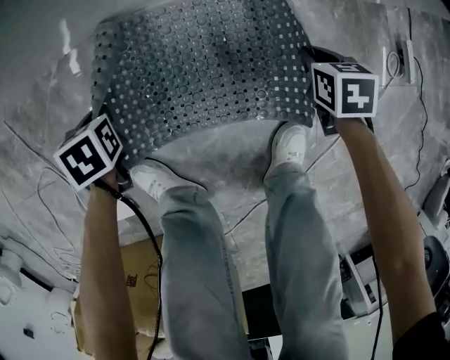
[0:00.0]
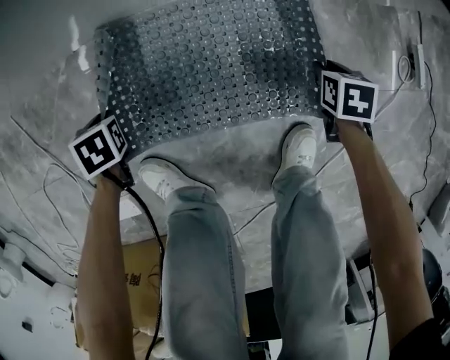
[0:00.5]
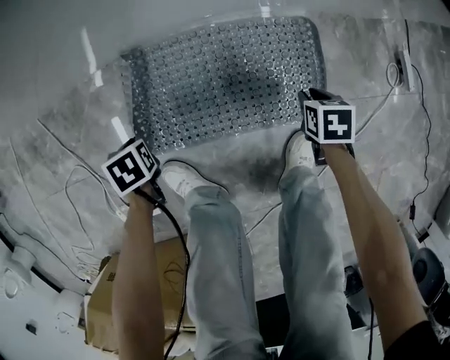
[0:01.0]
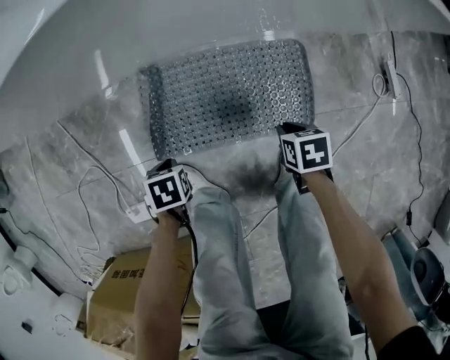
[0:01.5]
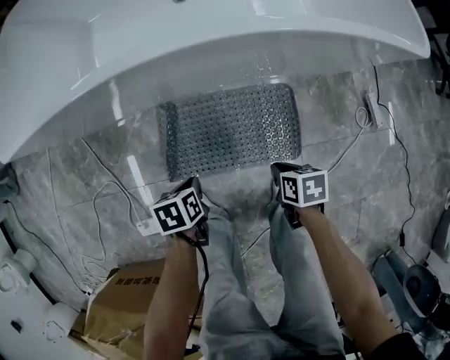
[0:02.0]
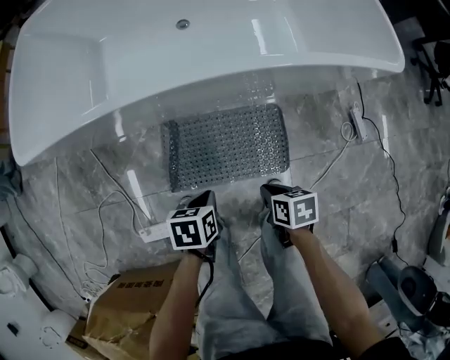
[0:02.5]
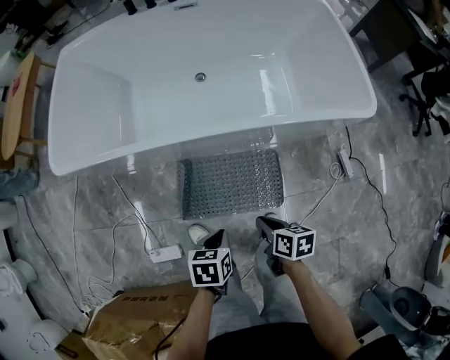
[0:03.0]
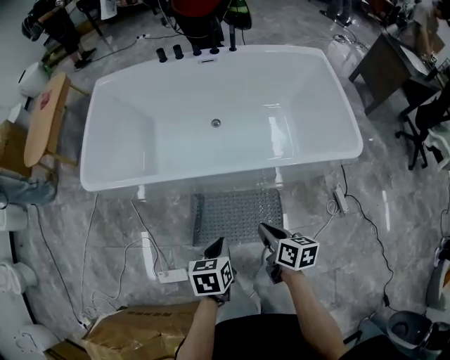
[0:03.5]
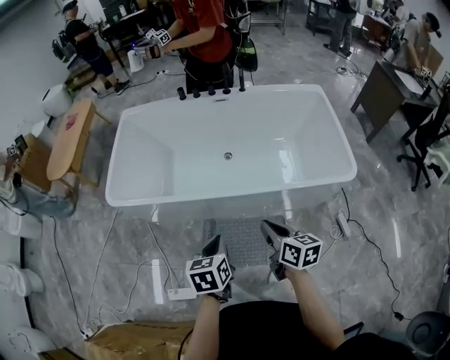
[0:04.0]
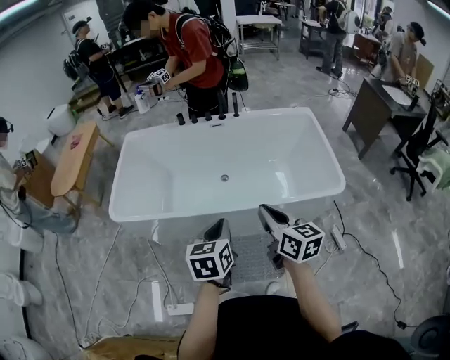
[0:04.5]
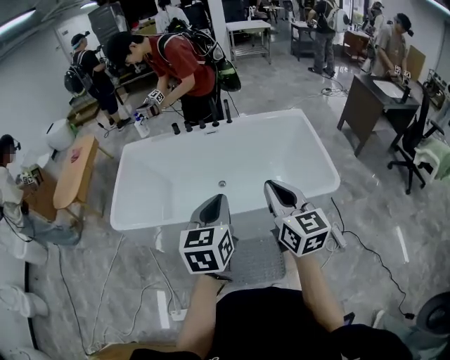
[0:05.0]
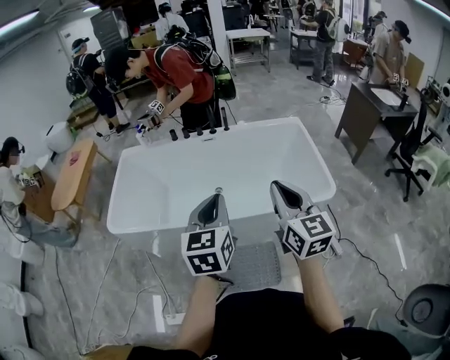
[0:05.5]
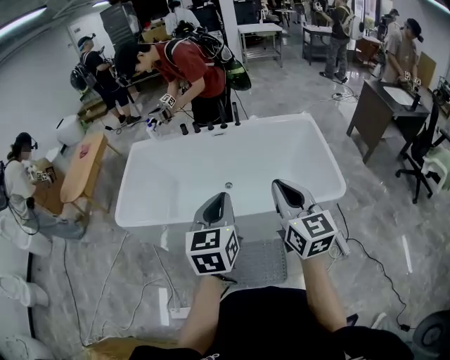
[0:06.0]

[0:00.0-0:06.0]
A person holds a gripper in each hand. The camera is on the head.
0:00.0 to 0:02.0: The two grippers go approximately 20 cm upward. The left gripper changes its angle by some 20 degrees; the right gripper rotates approximately 30 degrees, and opens, then closes once more.
0:02.0 to 0:04.0: Both grippers travel together upward, approximately 50 cm. The right gripper tips its fingers upward by some 40 degrees, while the left gripper turns by about 40 degrees.
0:04.0 to 0:06.0: The right gripper shifts some 25 cm upward, and swivels approximately 40 degrees; the left gripper moves upward and to the right, some 25 cm, and turns by roughly 30 degrees.

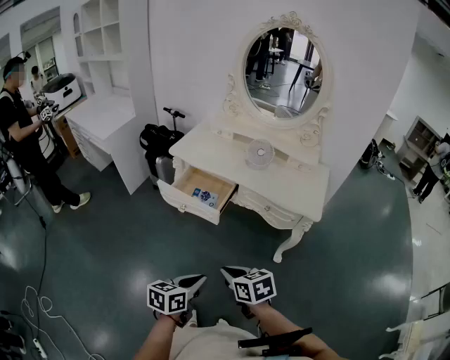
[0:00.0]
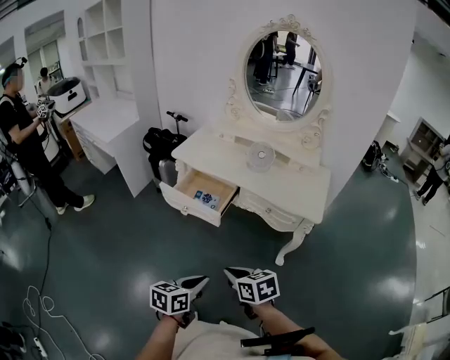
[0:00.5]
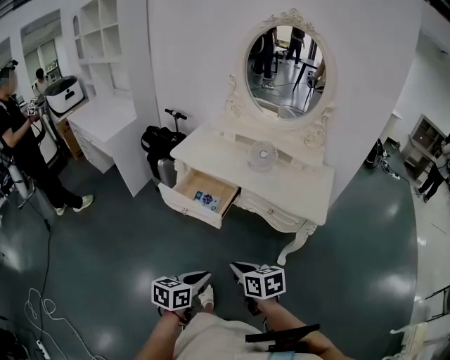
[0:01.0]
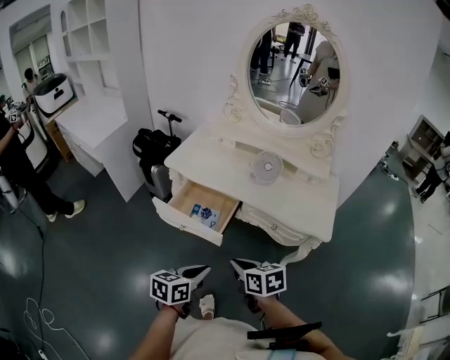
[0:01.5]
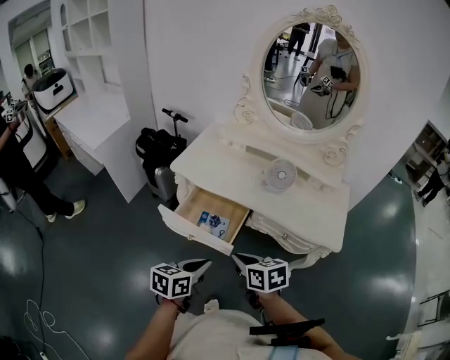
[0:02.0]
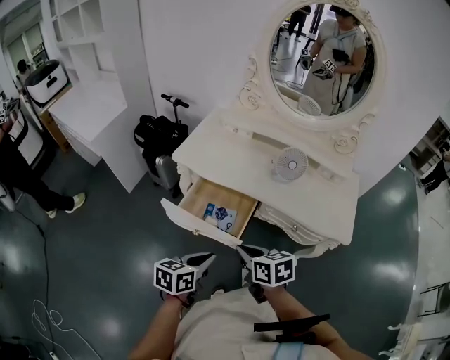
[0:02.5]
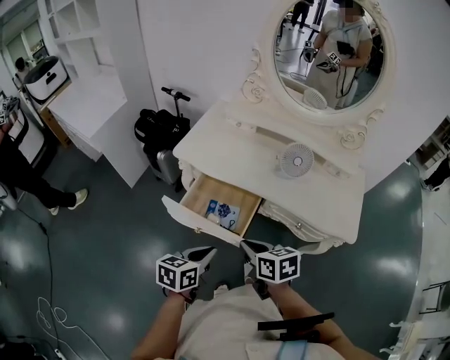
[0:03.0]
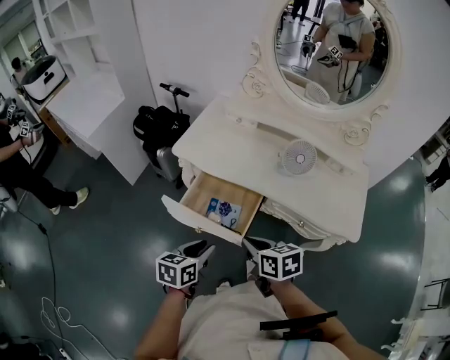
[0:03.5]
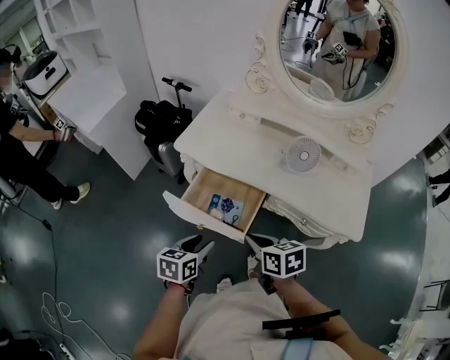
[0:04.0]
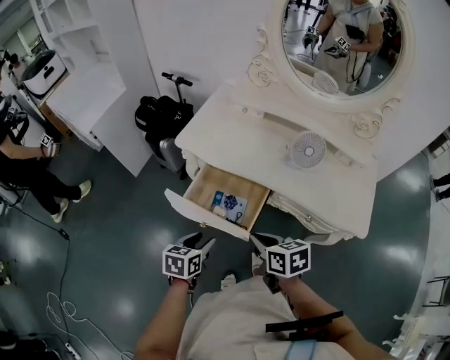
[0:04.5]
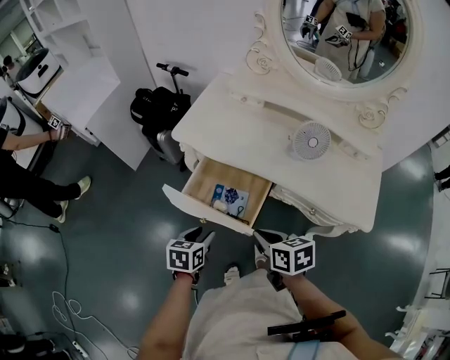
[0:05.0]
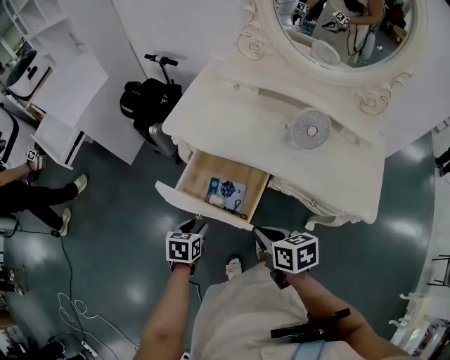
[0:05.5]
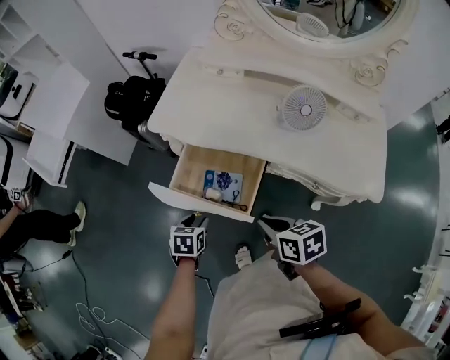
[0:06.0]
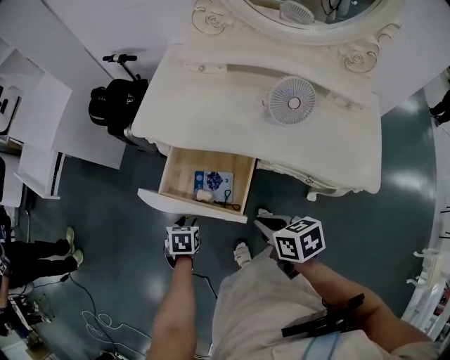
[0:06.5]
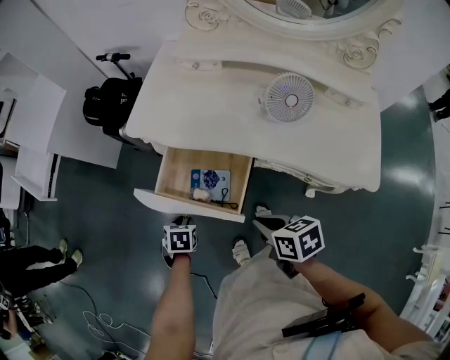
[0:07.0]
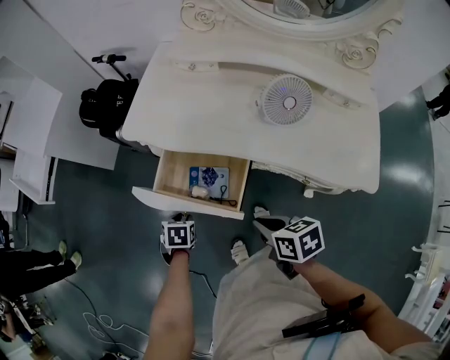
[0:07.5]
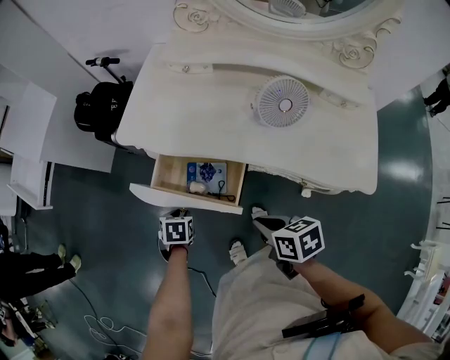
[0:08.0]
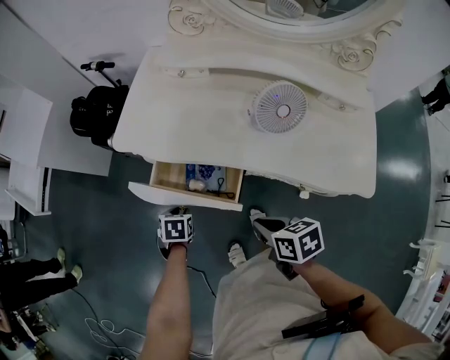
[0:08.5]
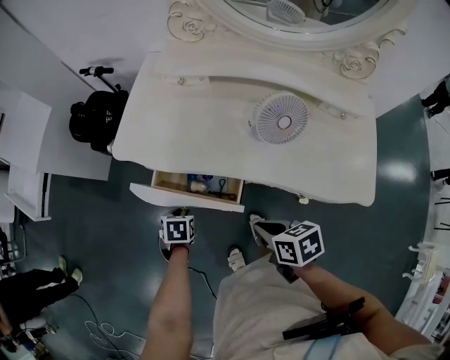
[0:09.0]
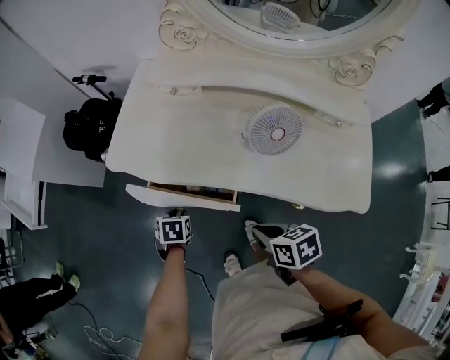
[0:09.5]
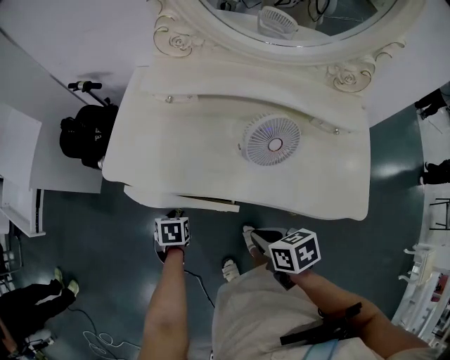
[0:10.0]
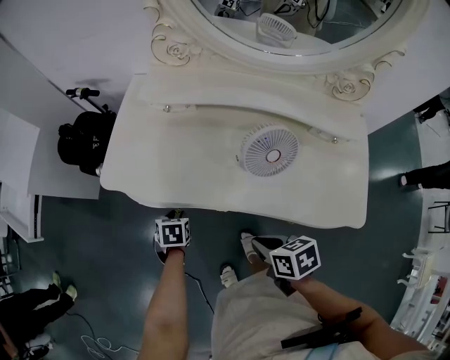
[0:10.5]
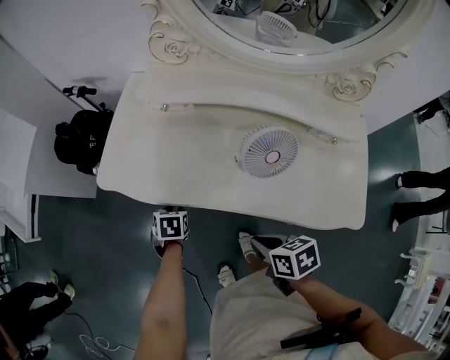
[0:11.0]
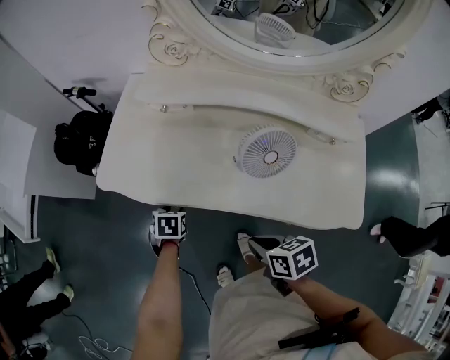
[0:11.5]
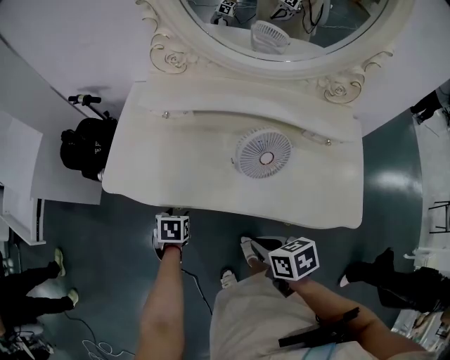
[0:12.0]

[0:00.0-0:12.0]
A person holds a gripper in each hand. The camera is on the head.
0:00.0 to 0:02.0: The grippers both shift forward by approximately 25 cm.
0:02.0 to 0:04.0: The left gripper goes about 15 cm forward, downward and to the left, and opens up; the right gripper shifts roughly 10 cm forward.
0:04.0 to 0:06.0: The right gripper shifts some 5 cm downward, while the left gripper moves downward and forward, some 15 cm, and rotates roughly 20 degrees.
0:06.0 to 0:08.0: The right gripper changes place by approximately 5 cm, while the left gripper goes about 5 cm forward.
0:08.0 to 0:10.0: The left gripper travels forward and to the right by approximately 10 cm, while the right gripper shifts approximately 10 cm forward and to the right.
0:10.0 to 0:12.0: The left gripper ends up about 5 cm from where it was, and opens.

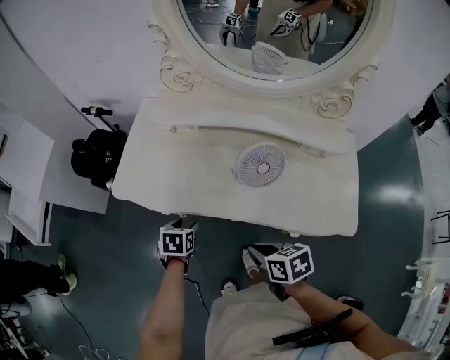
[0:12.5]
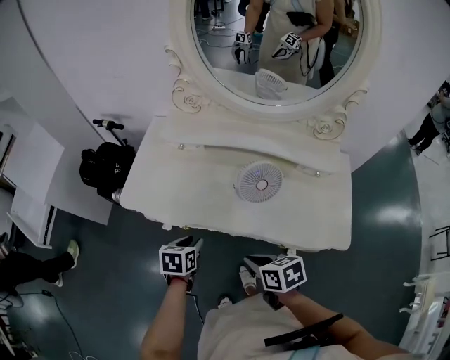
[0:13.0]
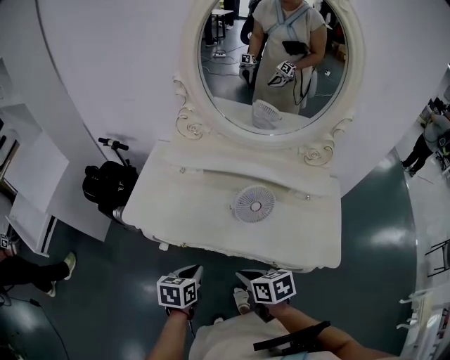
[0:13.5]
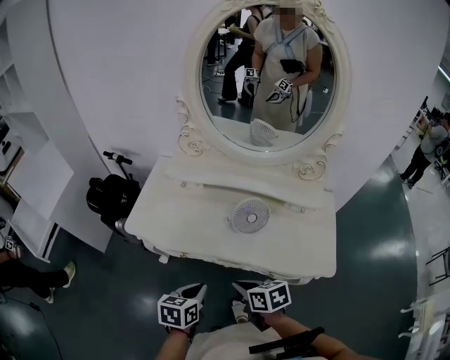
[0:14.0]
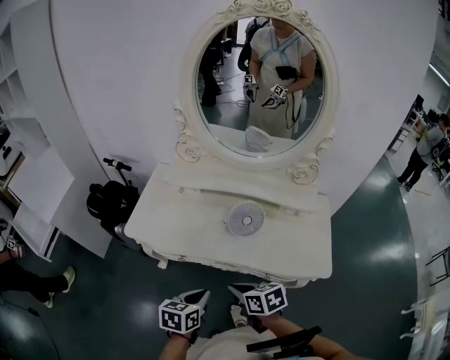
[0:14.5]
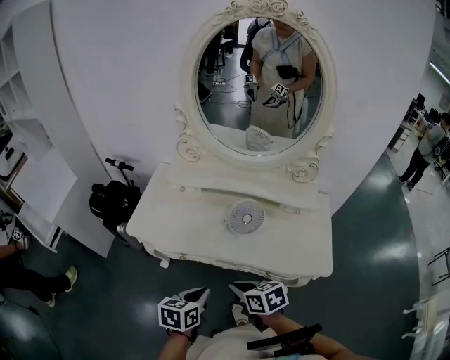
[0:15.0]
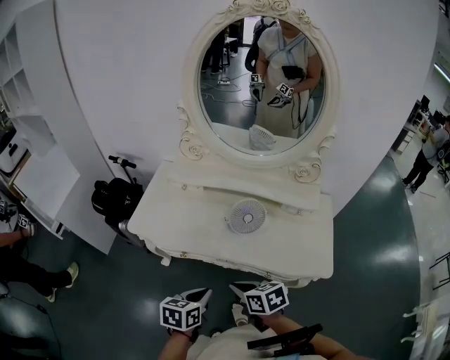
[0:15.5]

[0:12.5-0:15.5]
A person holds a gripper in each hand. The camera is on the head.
0:12.5 to 0:14.0: The left gripper shifts roughly 20 cm upward and backward, swivels about 20 degrees, and closes, while the right gripper shifts roughly 5 cm upward.
0:14.0 to 0:15.5: The grippers move only a little.

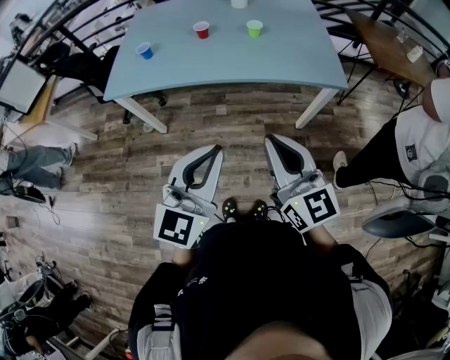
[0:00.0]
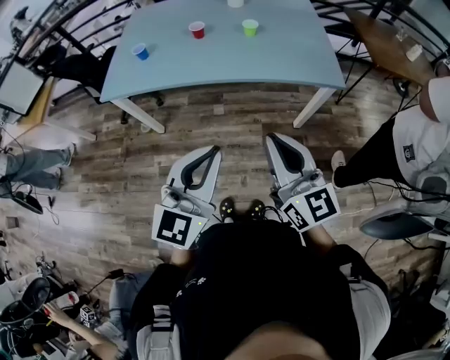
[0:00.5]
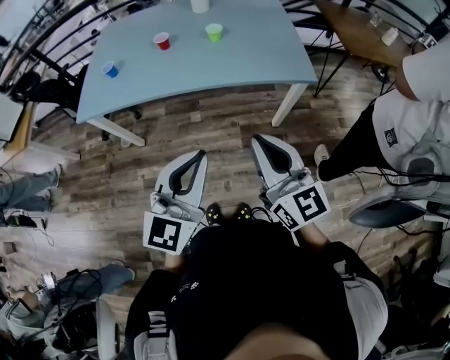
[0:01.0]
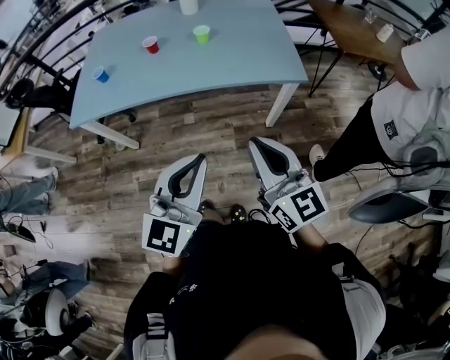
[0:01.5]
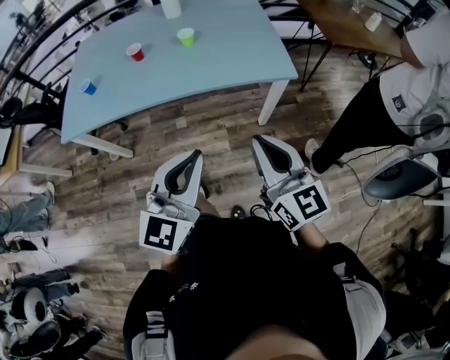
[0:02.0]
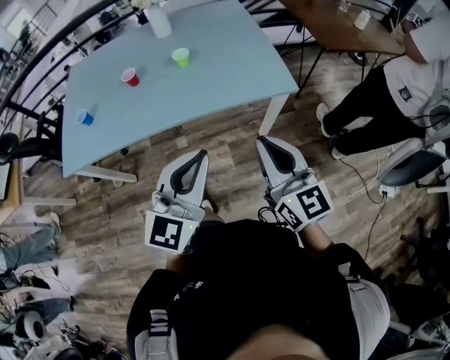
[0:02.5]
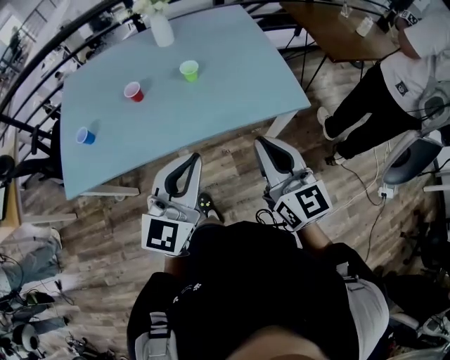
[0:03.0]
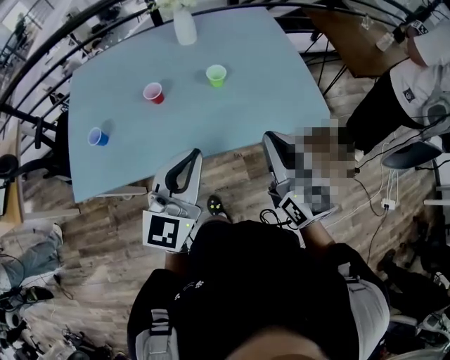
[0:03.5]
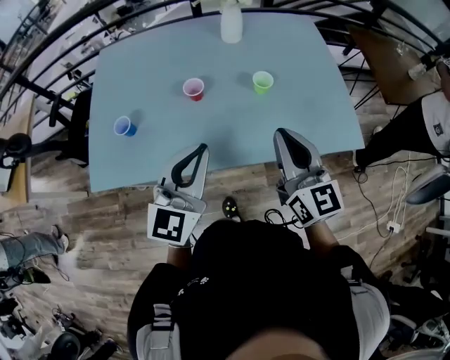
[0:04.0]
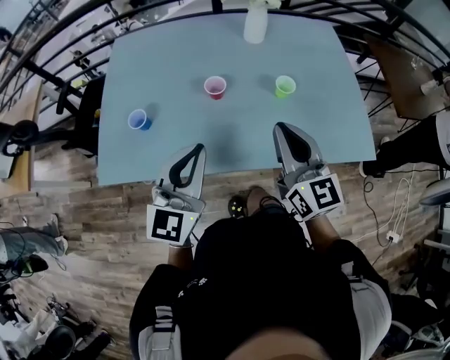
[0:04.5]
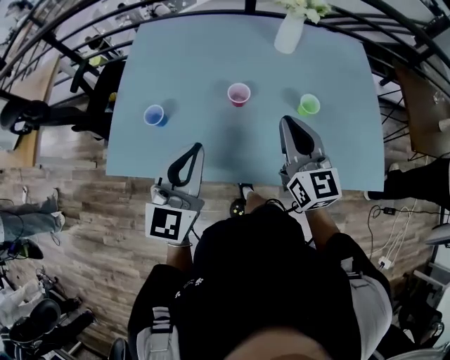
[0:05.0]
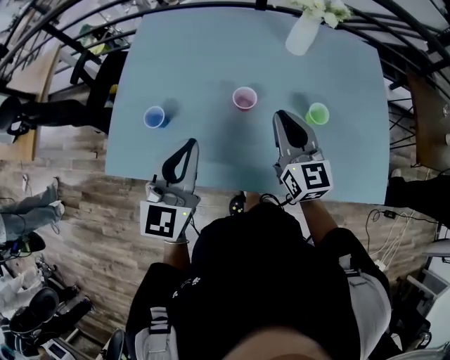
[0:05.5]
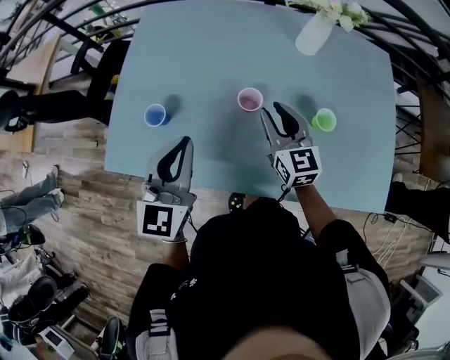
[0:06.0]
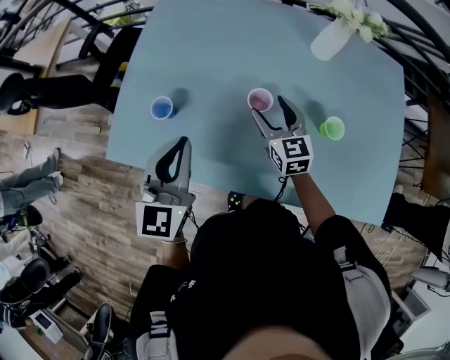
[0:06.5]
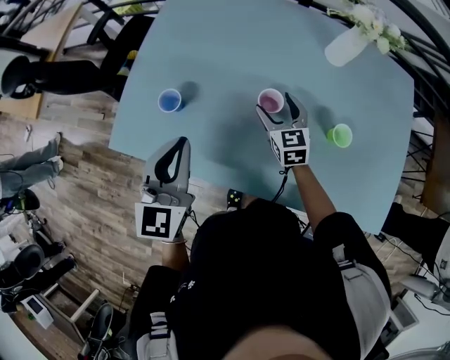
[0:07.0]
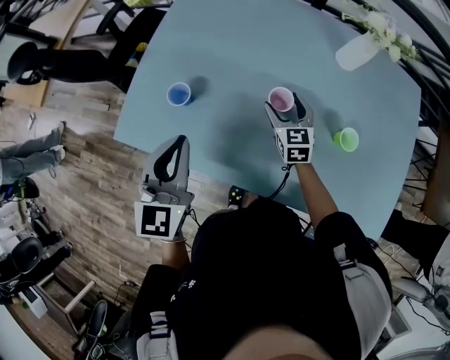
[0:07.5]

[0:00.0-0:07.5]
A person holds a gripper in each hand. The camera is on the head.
0:00.0 to 0:02.0: The left gripper shifts roughly 15 cm to the right and forward. The right gripper heads to the right, covering approximately 15 cm.
0:02.0 to 0:04.0: The pair of grippers is taken forward and to the left, approximately 40 cm.
0:04.0 to 0:05.5: The left gripper is displaced to the left and forward by about 20 cm. The right gripper travels forward and to the left by about 25 cm.
0:05.5 to 0:07.5: The right gripper moves downward and forward, approximately 20 cm, turns by some 20 degrees, and opens up; the left gripper is displaced to the left by roughly 5 cm.
